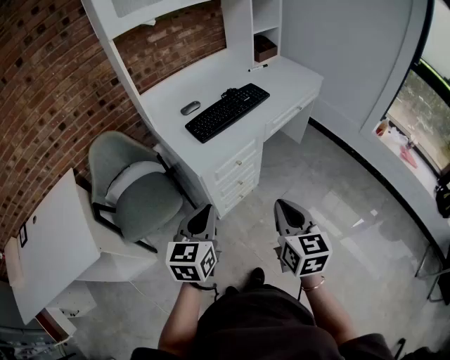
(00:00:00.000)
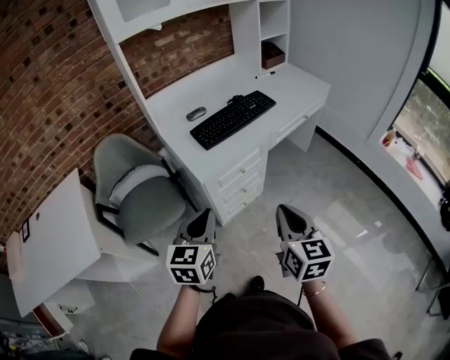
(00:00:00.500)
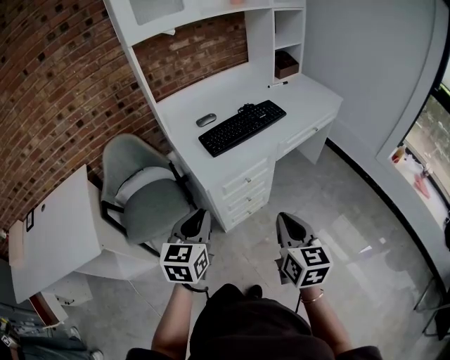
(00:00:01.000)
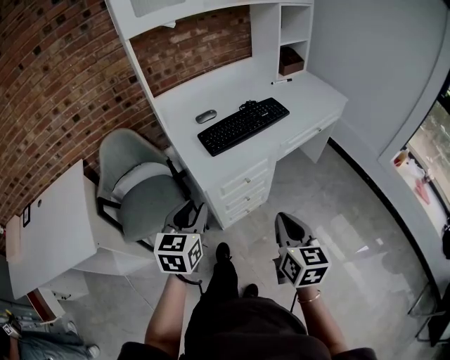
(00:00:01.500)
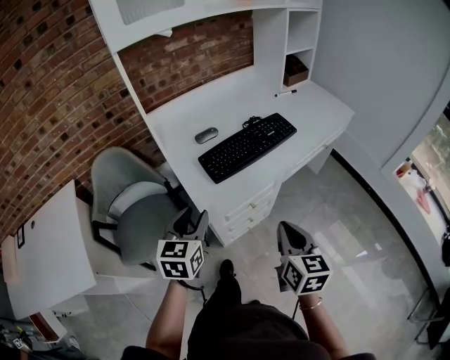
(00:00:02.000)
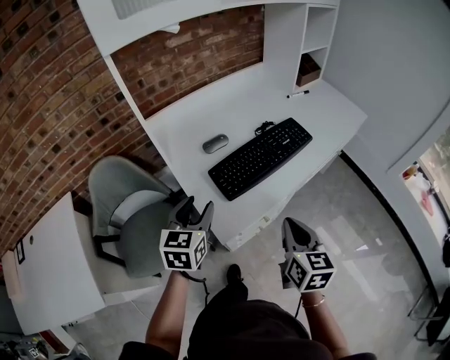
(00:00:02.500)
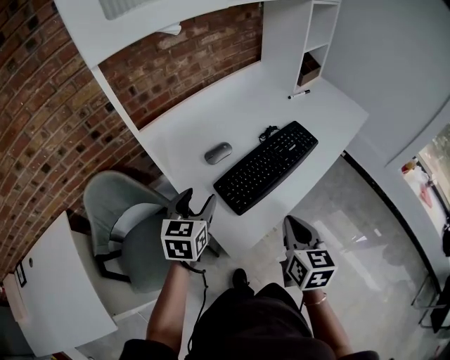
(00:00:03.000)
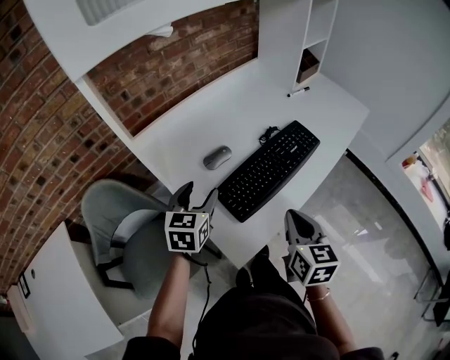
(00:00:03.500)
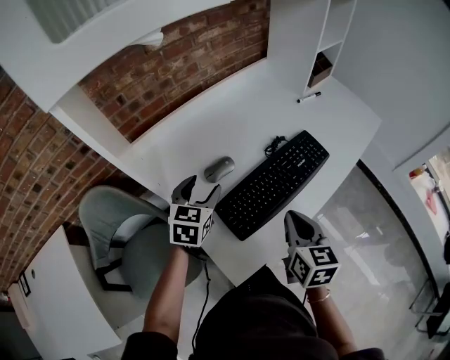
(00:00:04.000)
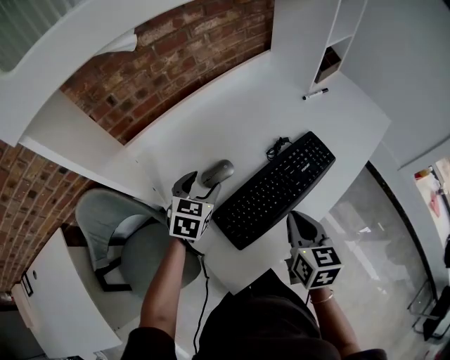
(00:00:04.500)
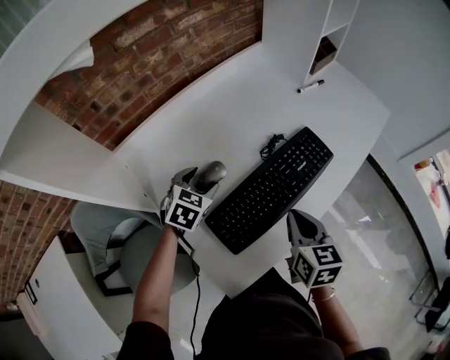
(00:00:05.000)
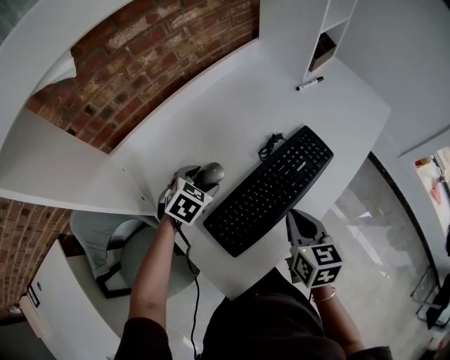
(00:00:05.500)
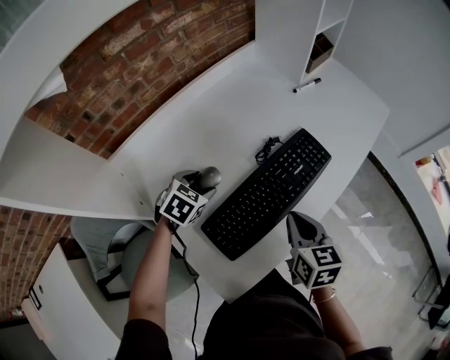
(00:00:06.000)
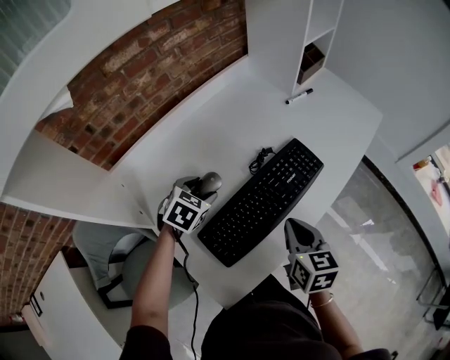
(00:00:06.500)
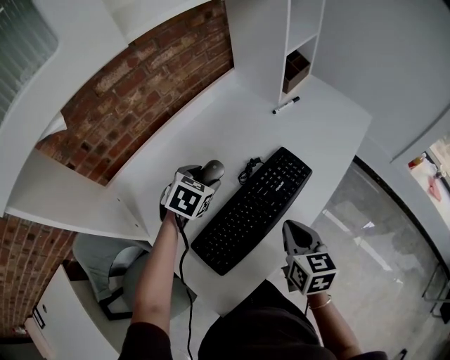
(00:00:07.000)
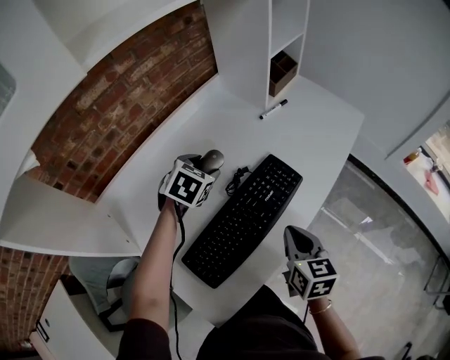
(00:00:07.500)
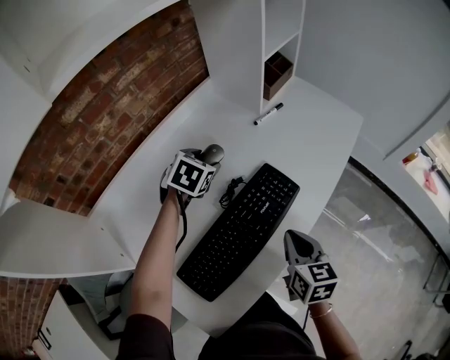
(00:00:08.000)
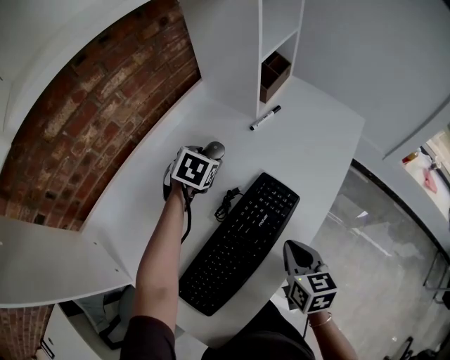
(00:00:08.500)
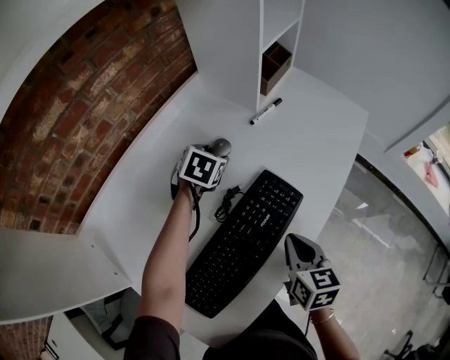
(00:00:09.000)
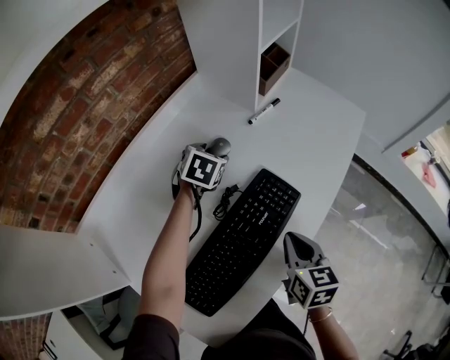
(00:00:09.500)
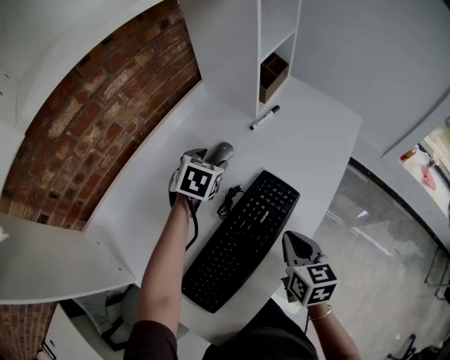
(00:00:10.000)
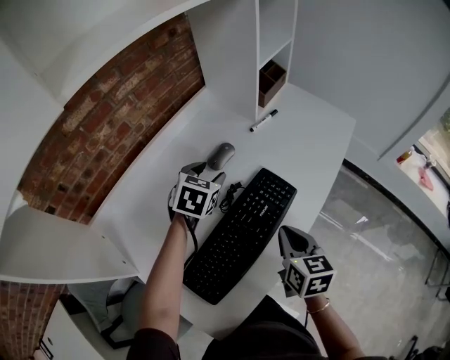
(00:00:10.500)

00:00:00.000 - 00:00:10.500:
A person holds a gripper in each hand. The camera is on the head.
00:00:00.000 - 00:00:02.000: Both grippers move forward, some 15 cm. The left gripper opens its fingers.
00:00:02.000 - 00:00:04.000: Both grippers move forward, roughly 30 cm. The left gripper opens.
00:00:04.000 - 00:00:06.500: The left gripper moves forward and downward, some 10 cm, and swivels about 30 degrees, while the right gripper heads forward, covering about 5 cm.
00:00:06.500 - 00:00:08.500: The left gripper goes about 30 cm forward and to the right. The right gripper travels to the right and forward by roughly 10 cm.
00:00:08.500 - 00:00:10.500: The left gripper shifts about 10 cm backward and upward.

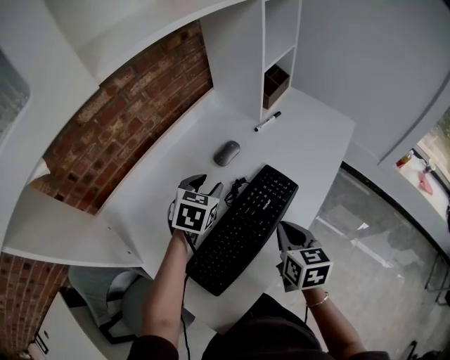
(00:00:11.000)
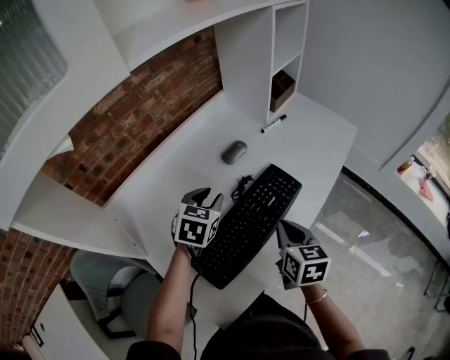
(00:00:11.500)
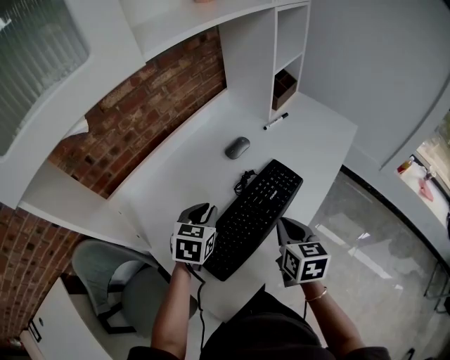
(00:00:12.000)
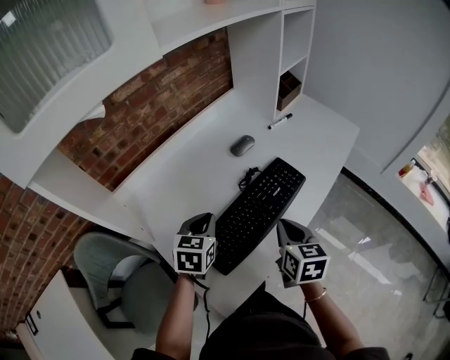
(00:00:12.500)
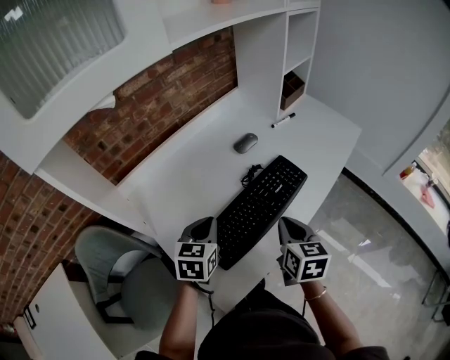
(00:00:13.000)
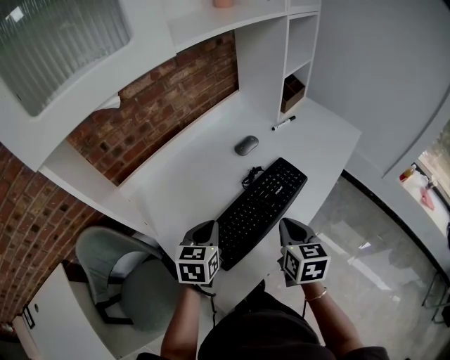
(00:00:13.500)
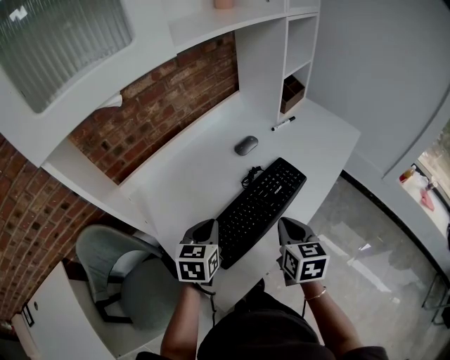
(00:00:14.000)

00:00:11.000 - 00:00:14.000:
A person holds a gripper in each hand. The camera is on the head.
00:00:11.000 - 00:00:12.500: The left gripper shifts roughly 15 cm backward, and closes. Meanwhile the right gripper heads backward, covering roughly 5 cm.
00:00:12.500 - 00:00:14.000: The grippers make only small movements.

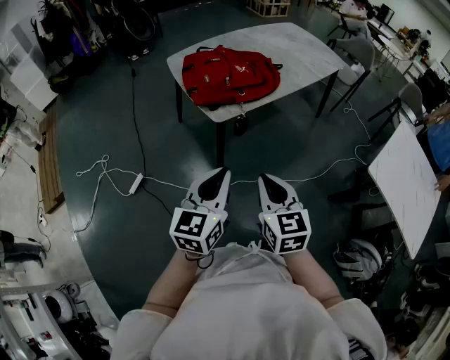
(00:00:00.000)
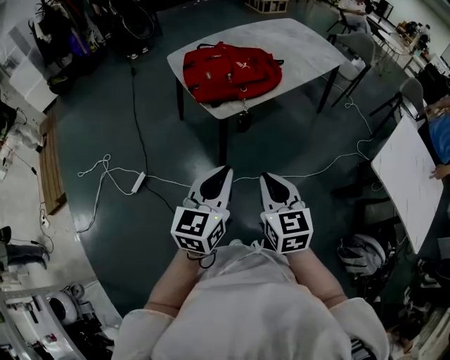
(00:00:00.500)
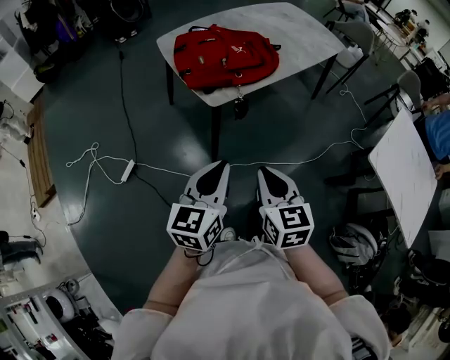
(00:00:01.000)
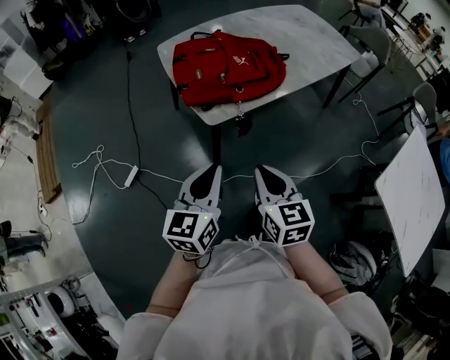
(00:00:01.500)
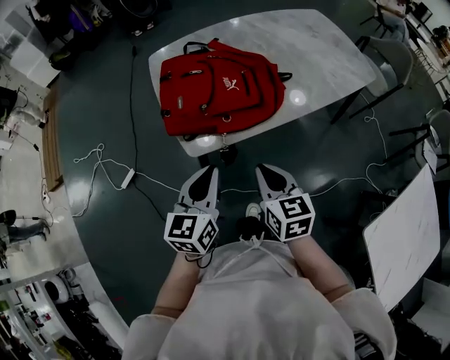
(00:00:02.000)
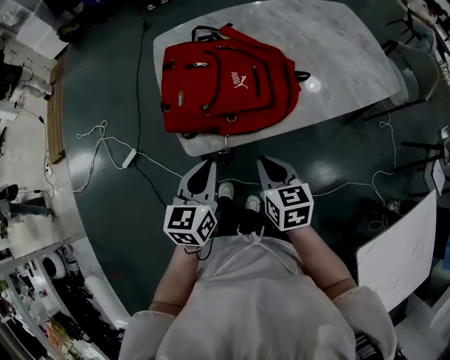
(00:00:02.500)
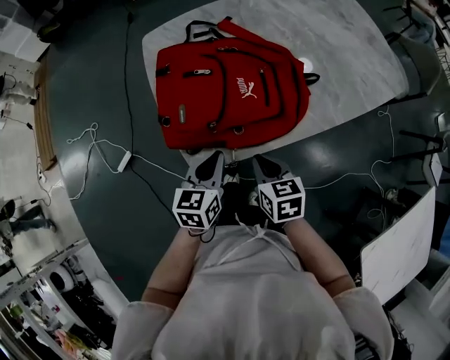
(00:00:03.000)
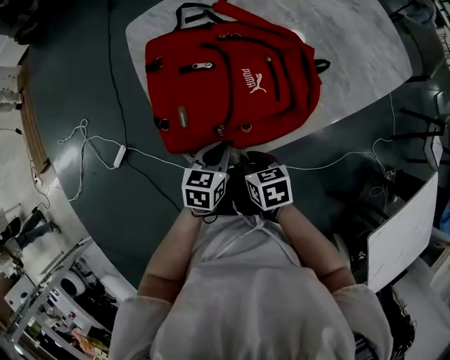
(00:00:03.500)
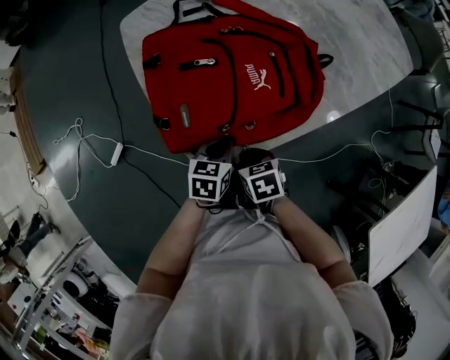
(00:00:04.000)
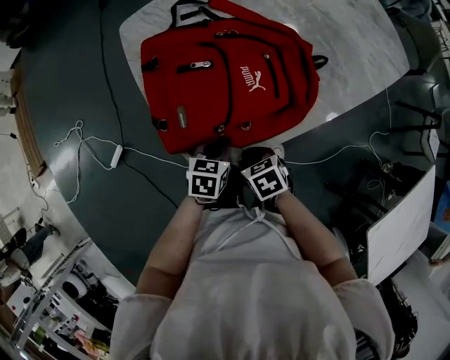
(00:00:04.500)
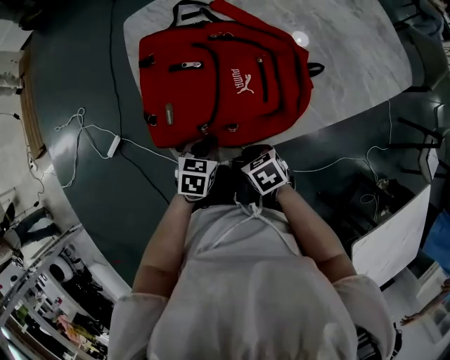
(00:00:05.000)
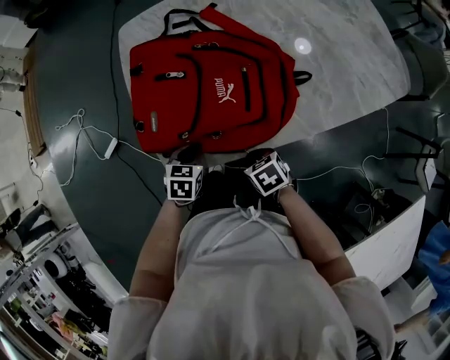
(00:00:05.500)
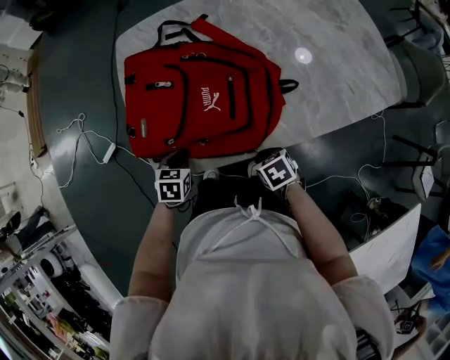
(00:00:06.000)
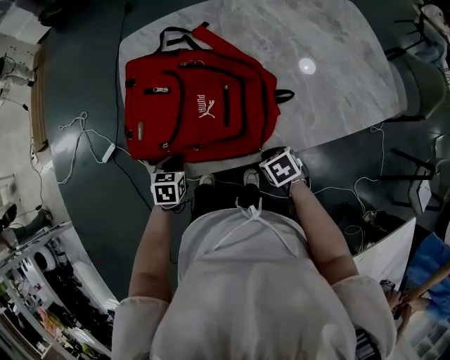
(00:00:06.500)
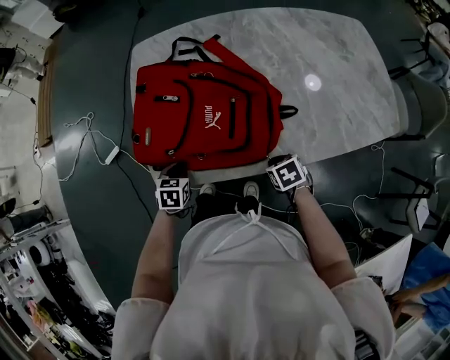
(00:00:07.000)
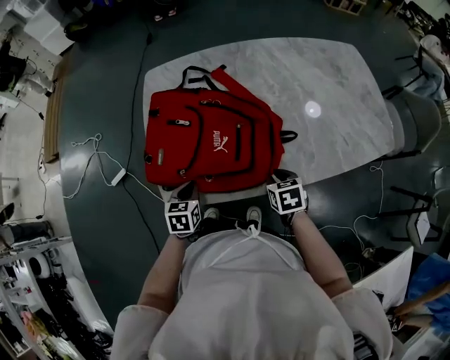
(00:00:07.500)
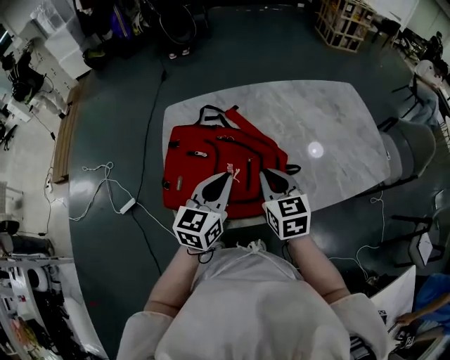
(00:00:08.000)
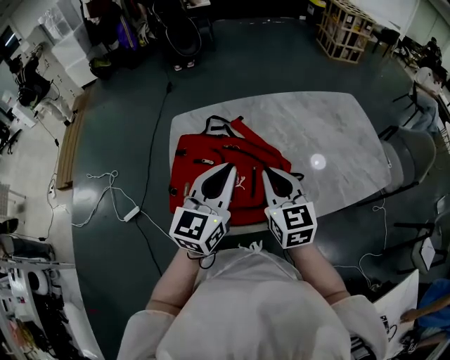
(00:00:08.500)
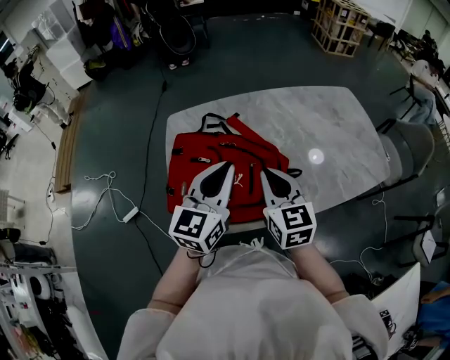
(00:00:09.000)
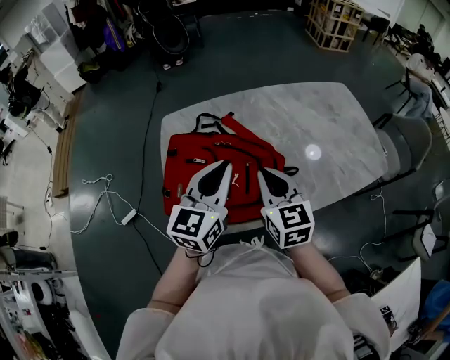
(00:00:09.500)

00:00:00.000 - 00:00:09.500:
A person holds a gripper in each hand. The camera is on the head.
00:00:00.000 - 00:00:02.000: Both grippers move forward, some 25 cm.
00:00:02.000 - 00:00:04.000: The left gripper is displaced downward and forward by approximately 30 cm, and points its fingers roughly 30 degrees further downward. The right gripper goes about 30 cm downward, forward and to the left, and tips its fingers downward by some 40 degrees.
00:00:04.000 - 00:00:05.500: The right gripper is displaced to the right by some 10 cm, and changes its angle by roughly 20 degrees.
00:00:05.500 - 00:00:07.500: The right gripper shifts roughly 15 cm to the right and upward, while the left gripper is displaced upward by roughly 5 cm.
00:00:07.500 - 00:00:09.500: The grippers both shift upward by about 30 cm. The right gripper angles its fingers upward, by some 40 degrees, while the left gripper tips its fingers upward by some 40 degrees.

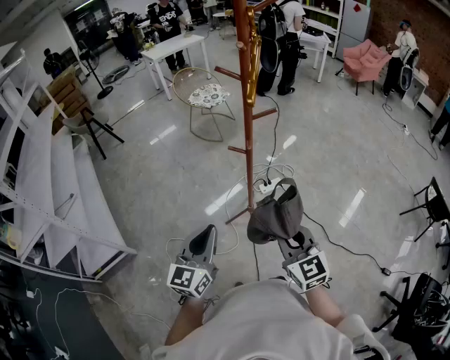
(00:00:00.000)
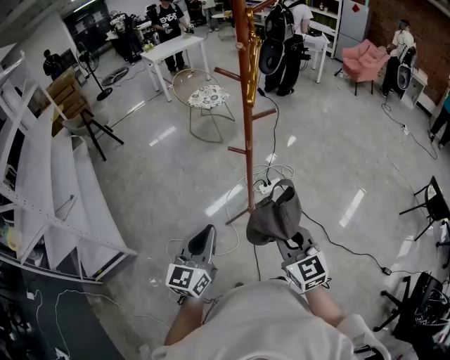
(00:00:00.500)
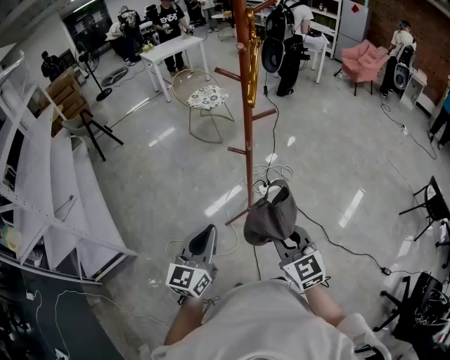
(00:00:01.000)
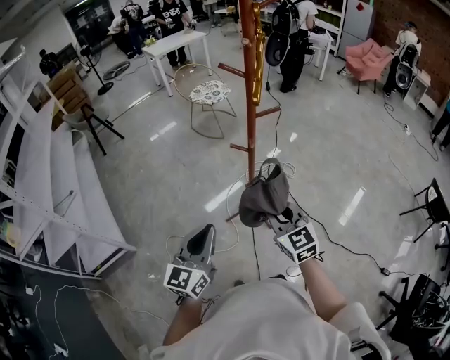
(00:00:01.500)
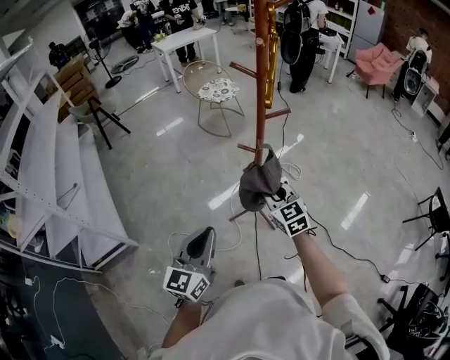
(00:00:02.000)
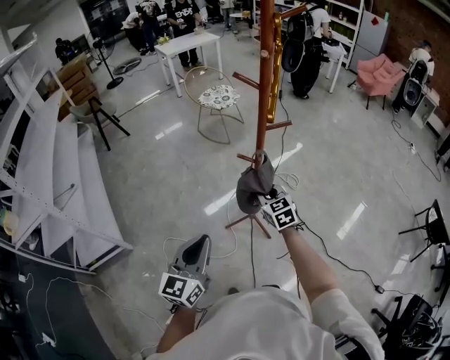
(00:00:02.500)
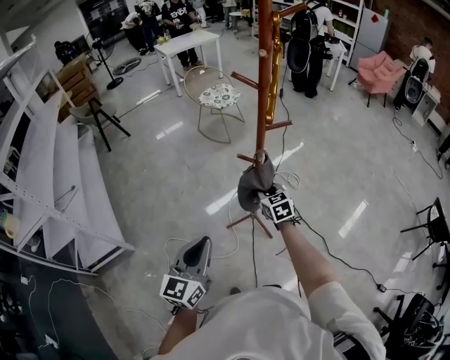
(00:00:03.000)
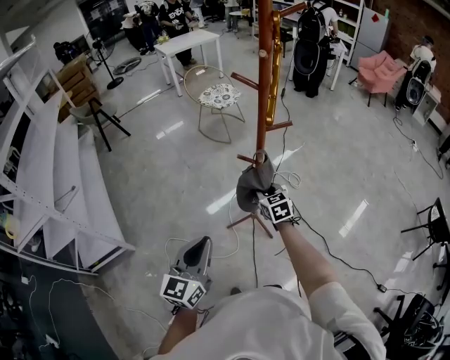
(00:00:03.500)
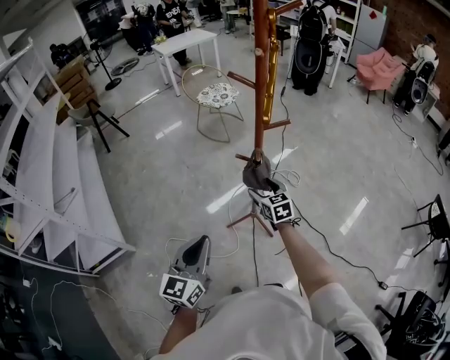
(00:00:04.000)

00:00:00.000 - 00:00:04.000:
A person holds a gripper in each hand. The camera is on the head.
00:00:00.000 - 00:00:02.000: The right gripper heads forward, covering approximately 15 cm.
00:00:02.000 - 00:00:04.000: The right gripper heads forward and downward, covering about 10 cm, and opens.
